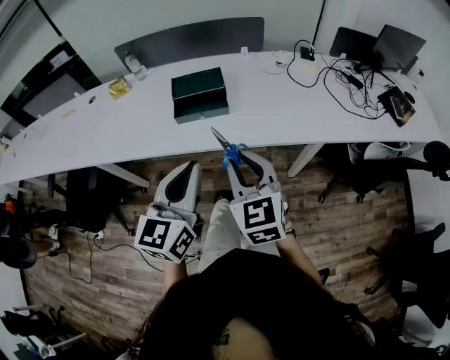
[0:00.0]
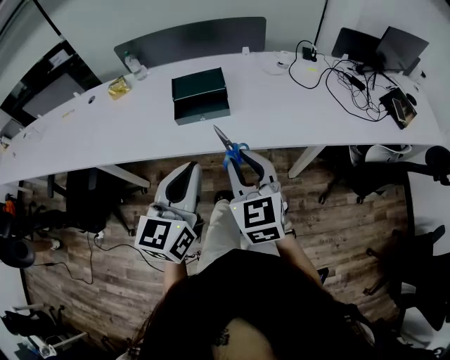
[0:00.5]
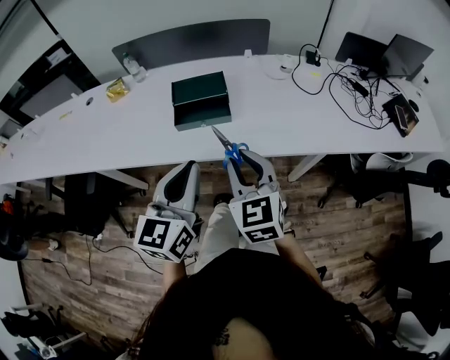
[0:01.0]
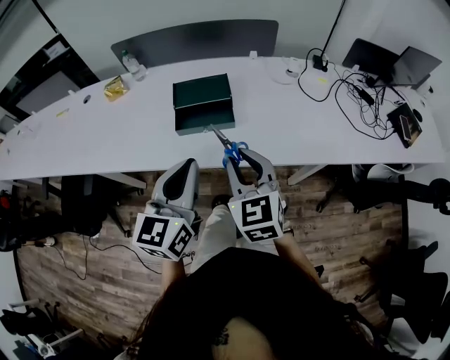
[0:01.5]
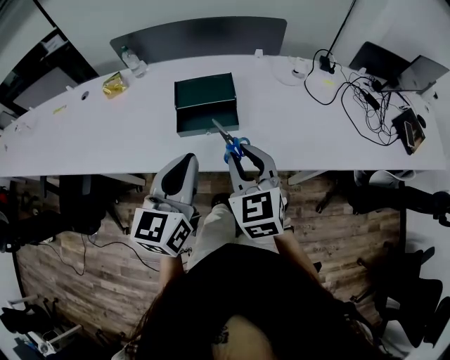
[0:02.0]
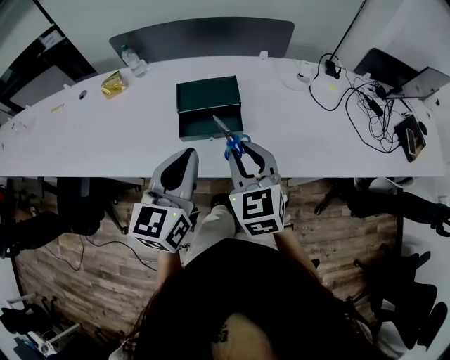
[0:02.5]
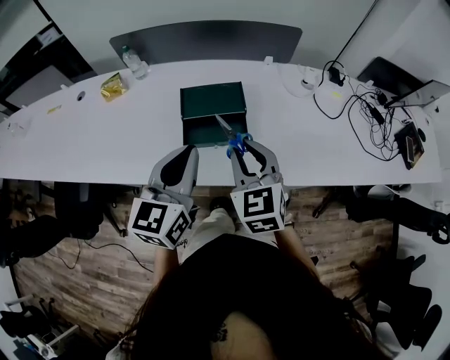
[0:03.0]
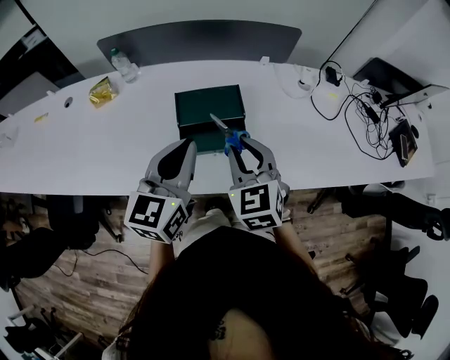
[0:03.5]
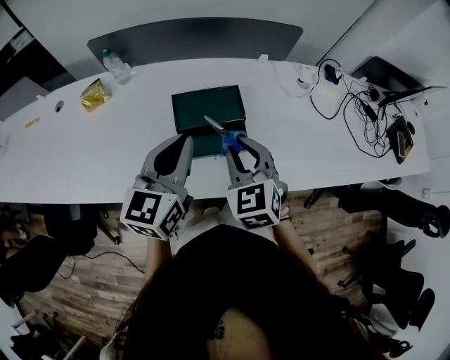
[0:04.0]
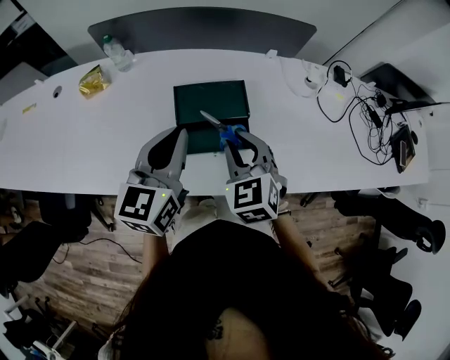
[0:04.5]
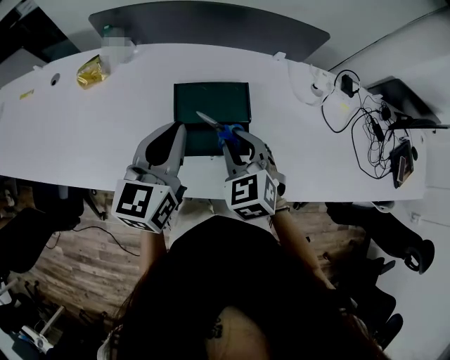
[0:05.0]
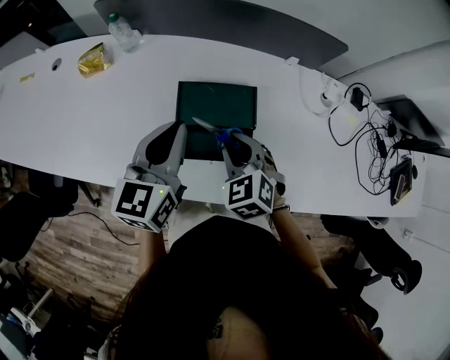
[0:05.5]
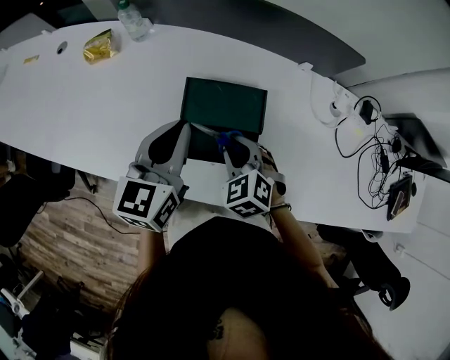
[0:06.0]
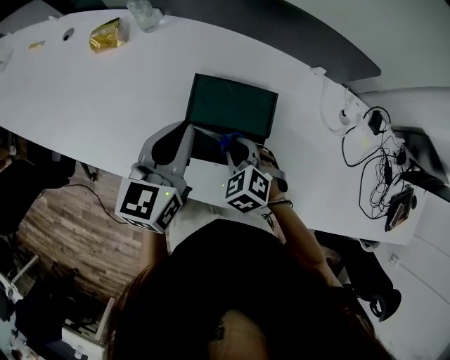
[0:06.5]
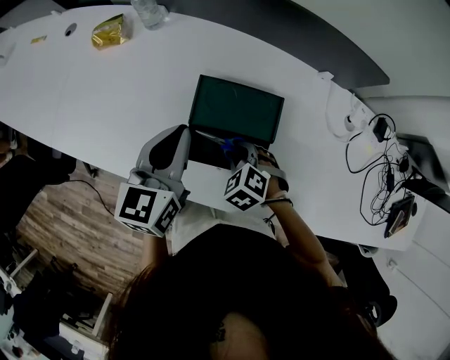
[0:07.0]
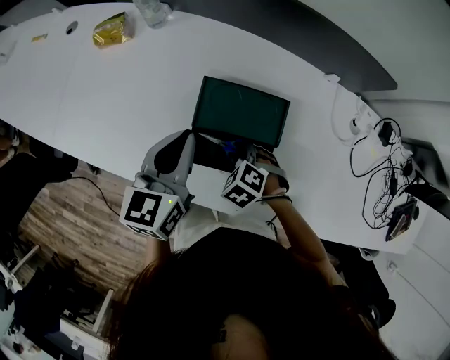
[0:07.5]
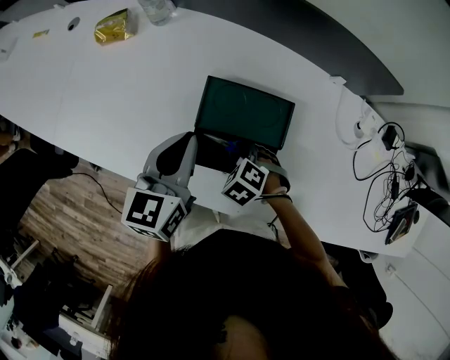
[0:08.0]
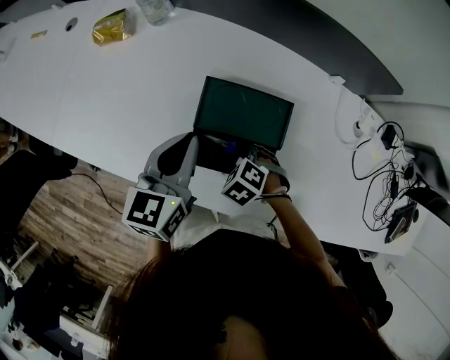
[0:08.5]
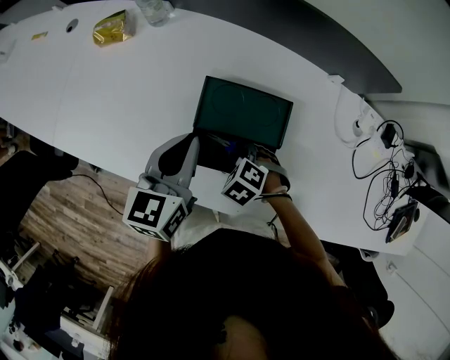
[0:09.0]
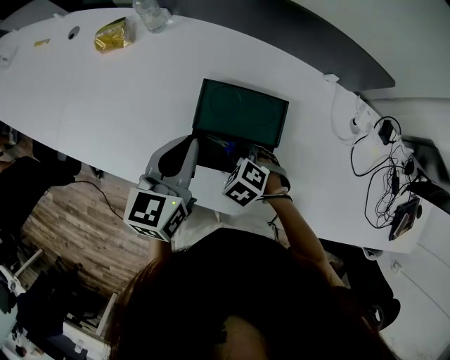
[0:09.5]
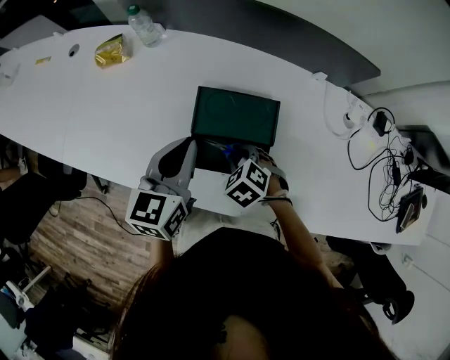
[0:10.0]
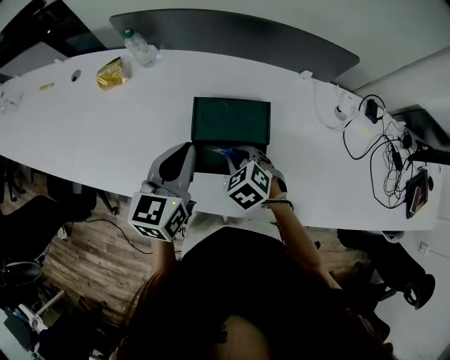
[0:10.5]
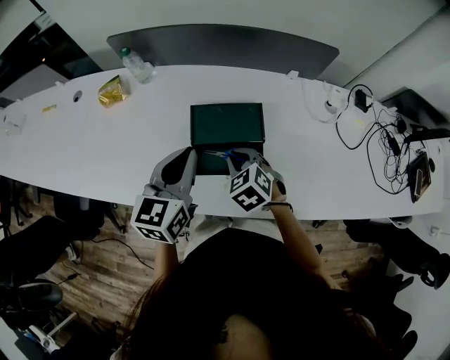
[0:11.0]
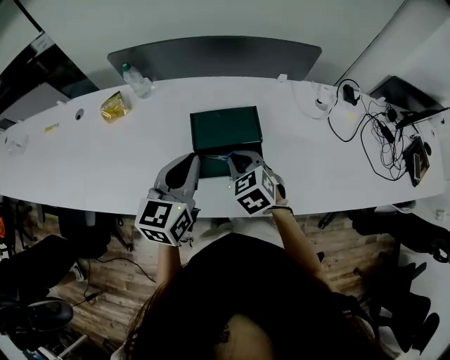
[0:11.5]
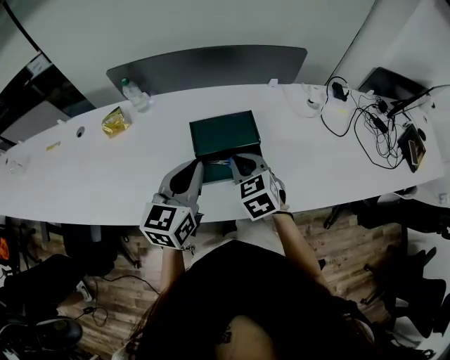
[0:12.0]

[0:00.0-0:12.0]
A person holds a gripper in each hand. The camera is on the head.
0:00.0 to 0:02.0: Both grippers move forward, about 15 cm.
0:02.0 to 0:04.0: The two grippers go some 20 cm forward and to the left.
0:04.0 to 0:06.0: The left gripper shifts roughly 10 cm forward and downward. The right gripper moves downward and forward, about 15 cm, and changes its angle by roughly 30 degrees.
0:06.0 to 0:08.0: The right gripper shifts roughly 15 cm downward, and rotates approximately 30 degrees; the left gripper travels downward by approximately 5 cm.
0:08.0 to 0:10.0: The right gripper heads upward, covering some 5 cm.
0:10.0 to 0:12.0: The left gripper goes approximately 10 cm backward and upward, and rotates roughly 20 degrees, while the right gripper heads upward, covering approximately 15 cm, and angles its fingers upward, by roughly 30 degrees.

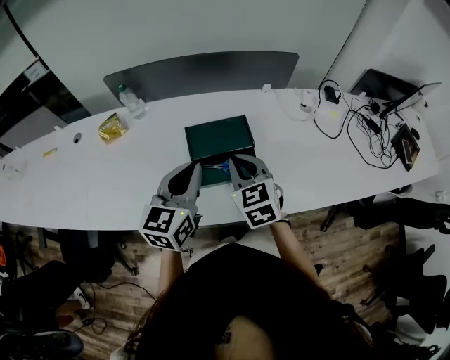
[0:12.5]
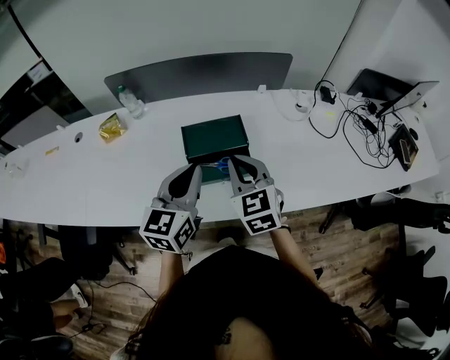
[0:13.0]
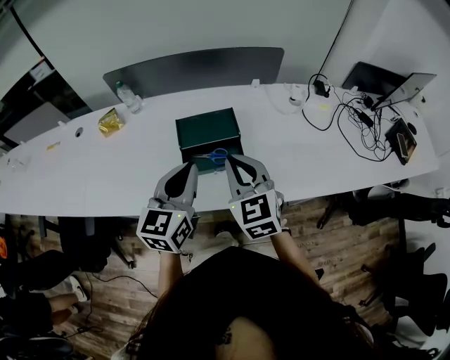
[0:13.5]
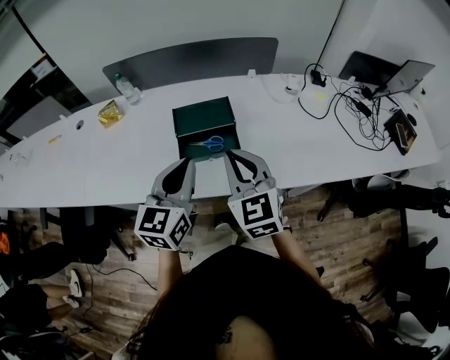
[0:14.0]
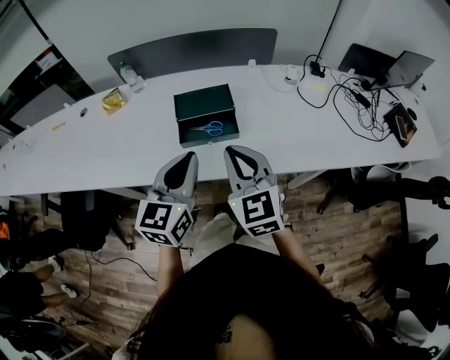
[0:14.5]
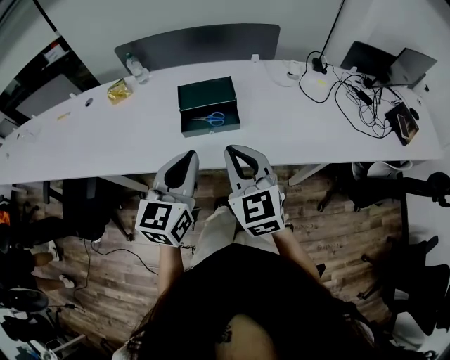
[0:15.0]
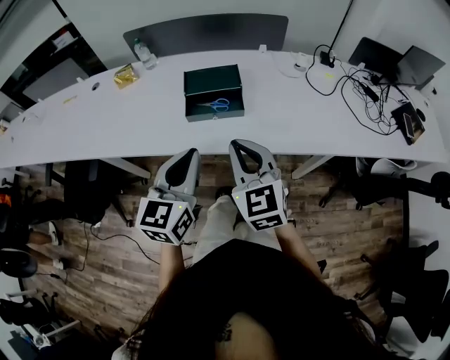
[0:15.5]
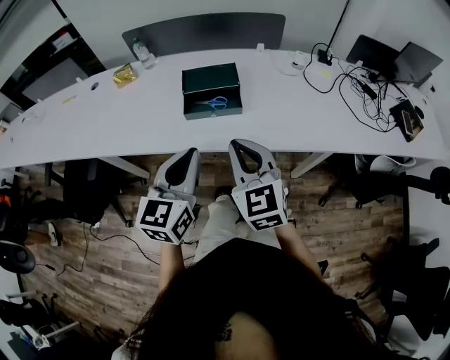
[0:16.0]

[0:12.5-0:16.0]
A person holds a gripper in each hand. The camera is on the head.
0:12.5 to 0:14.5: The right gripper is displaced backward, to the right and upward by roughly 20 cm. The left gripper shifts approximately 20 cm backward and to the right.
0:14.5 to 0:16.0: Both grippers move backward, roughly 10 cm.

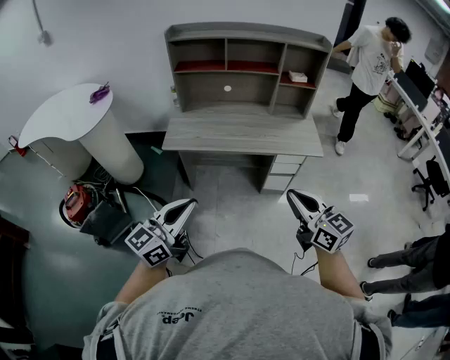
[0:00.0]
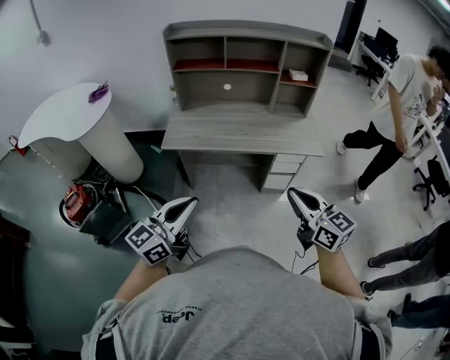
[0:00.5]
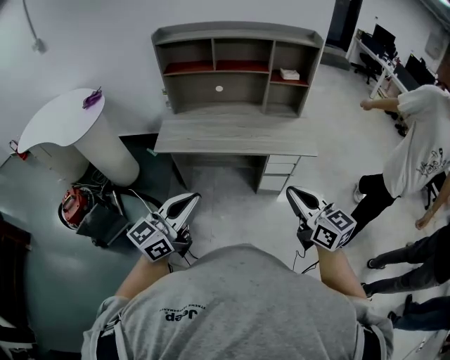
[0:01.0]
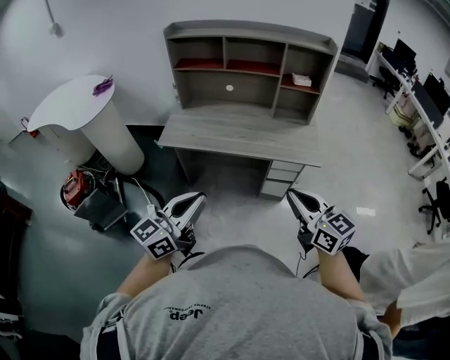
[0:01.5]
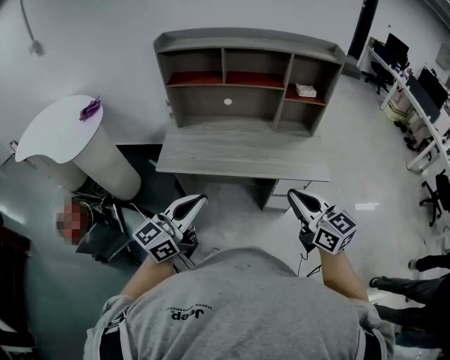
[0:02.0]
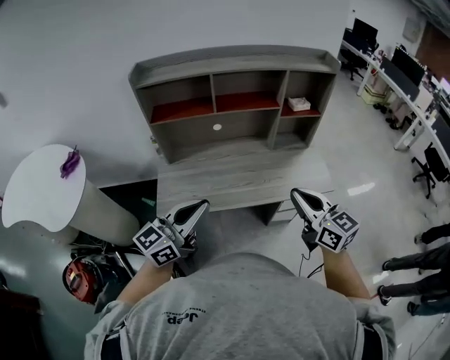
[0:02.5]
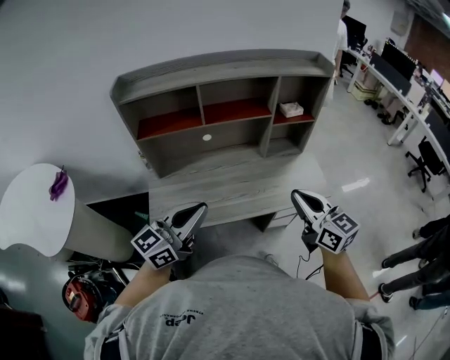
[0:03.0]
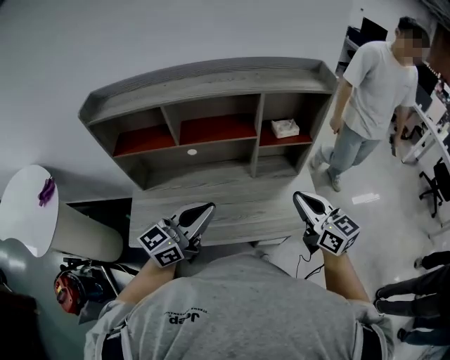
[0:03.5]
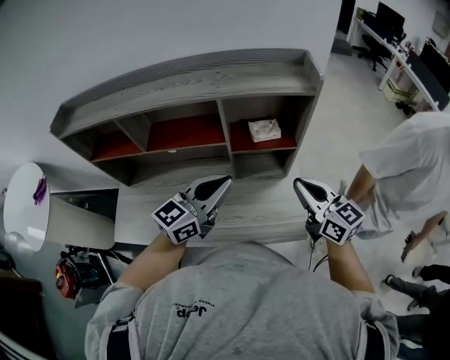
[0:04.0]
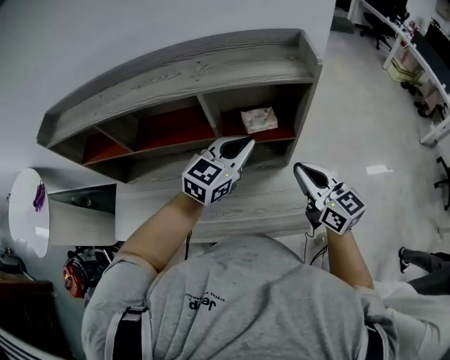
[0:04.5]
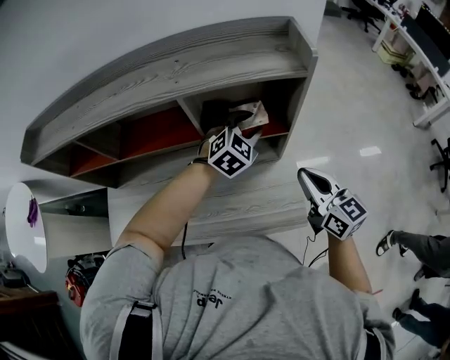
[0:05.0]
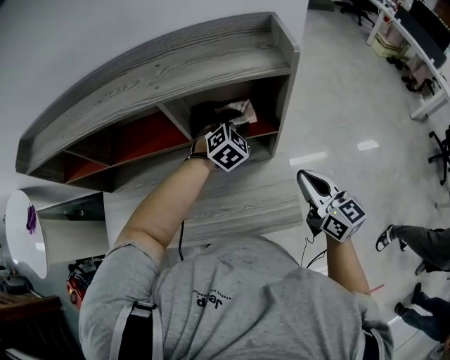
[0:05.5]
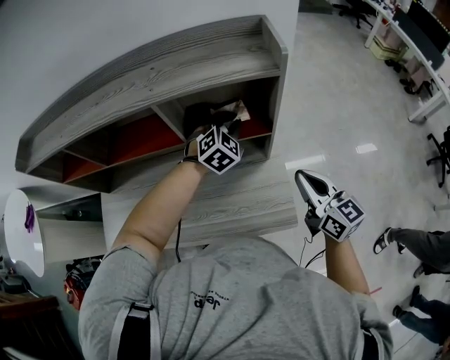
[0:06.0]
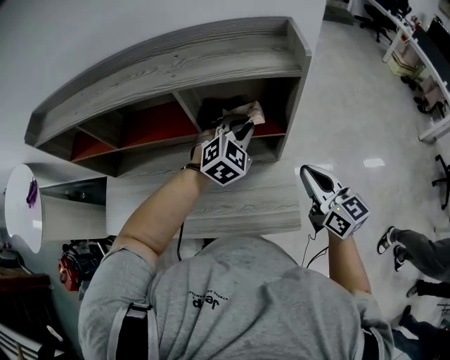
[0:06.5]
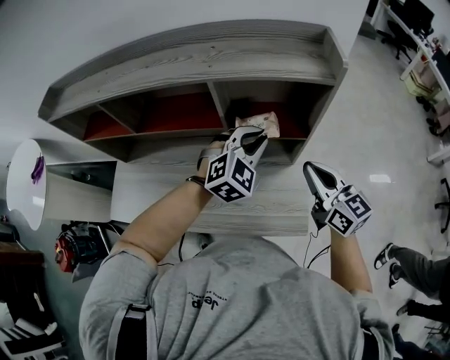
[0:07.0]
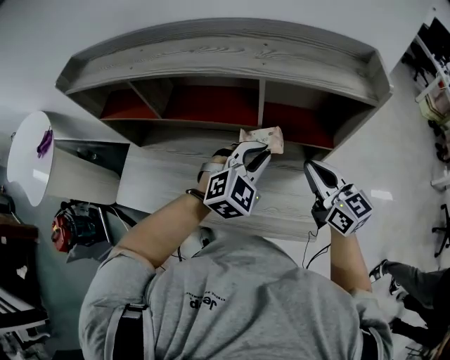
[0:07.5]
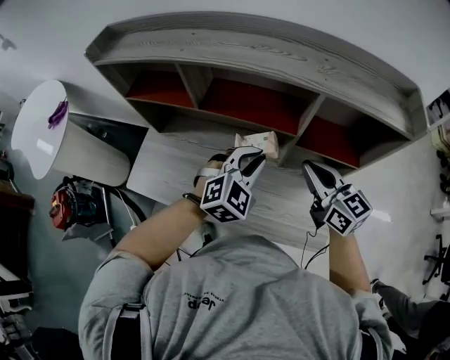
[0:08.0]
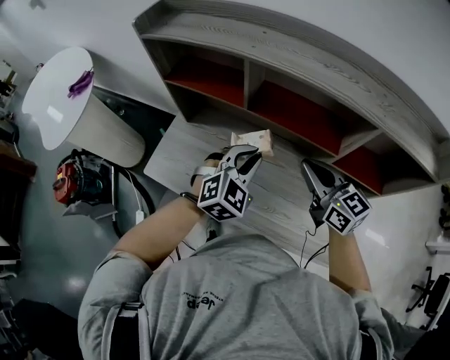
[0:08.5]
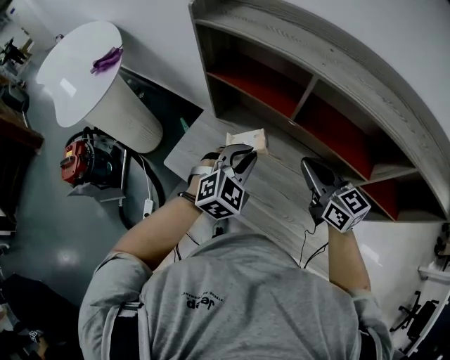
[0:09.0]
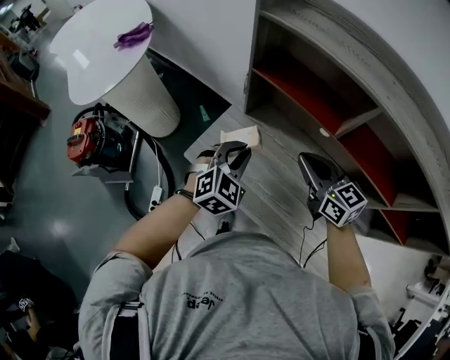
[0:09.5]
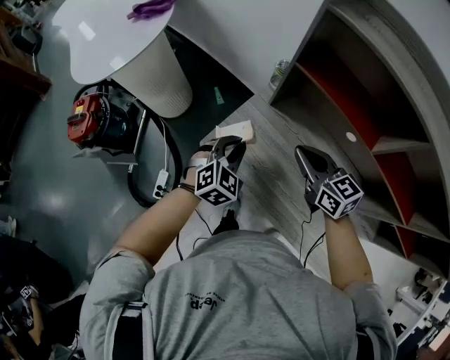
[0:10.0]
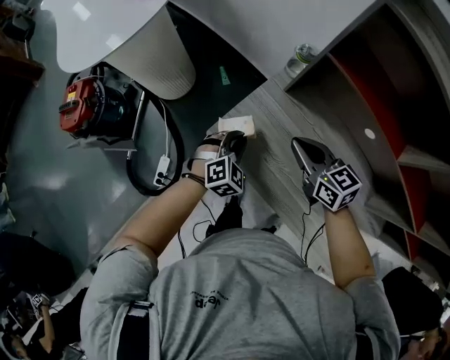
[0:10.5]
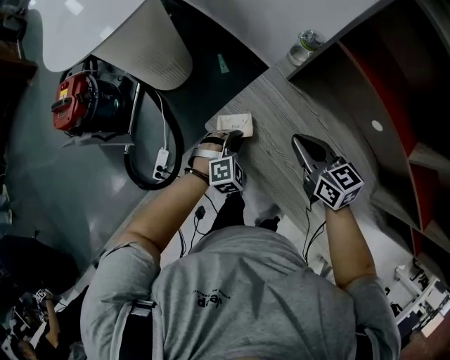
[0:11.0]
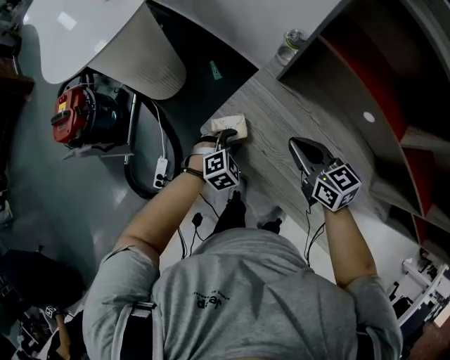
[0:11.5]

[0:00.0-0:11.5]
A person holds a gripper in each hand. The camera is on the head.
0:00.0 to 0:02.0: Both grippers move forward, about 20 cm.
0:02.0 to 0:04.0: The pair of grippers is taken forward and to the right, about 50 cm.
0:04.0 to 0:06.0: The left gripper travels forward, downward and to the right by about 30 cm, tilts its fingers some 40 degrees downward, and opens and closes again, while the right gripper goes some 10 cm to the right and downward.
0:06.0 to 0:07.5: The right gripper is displaced to the left by about 15 cm. The left gripper shifts roughly 20 cm to the left, backward and upward.
0:07.5 to 0:09.5: The two grippers travel together, roughly 50 cm. The right gripper swivels some 30 degrees; the left gripper turns by approximately 40 degrees.
0:09.5 to 0:11.5: Both grippers travel together downward and to the left, roughly 25 cm. The left gripper swivels roughly 20 degrees, and opens.
